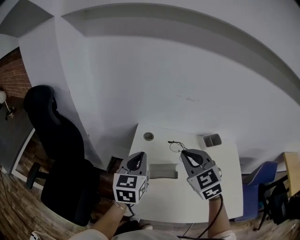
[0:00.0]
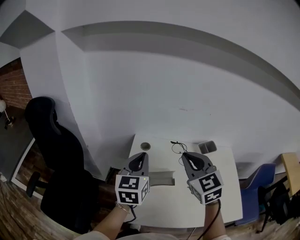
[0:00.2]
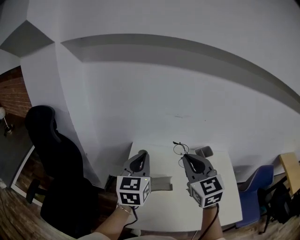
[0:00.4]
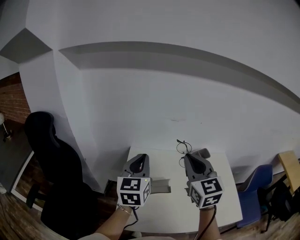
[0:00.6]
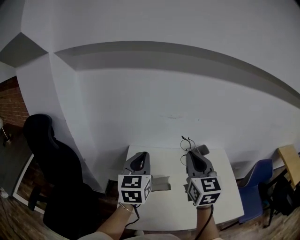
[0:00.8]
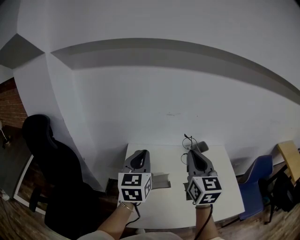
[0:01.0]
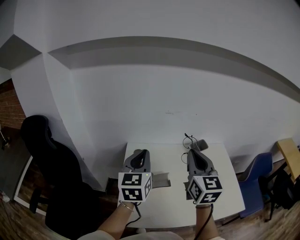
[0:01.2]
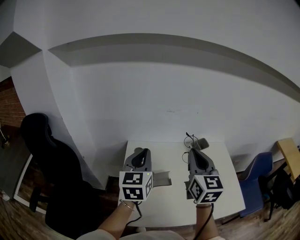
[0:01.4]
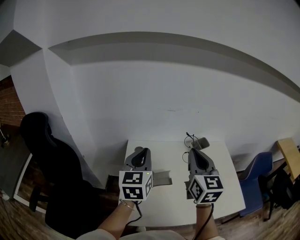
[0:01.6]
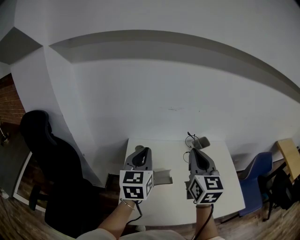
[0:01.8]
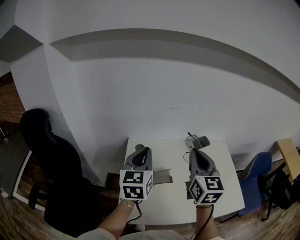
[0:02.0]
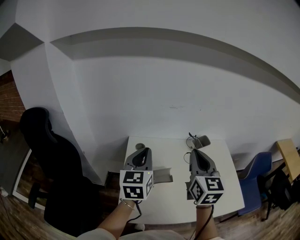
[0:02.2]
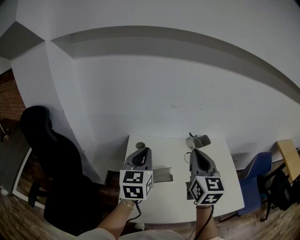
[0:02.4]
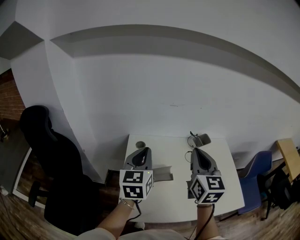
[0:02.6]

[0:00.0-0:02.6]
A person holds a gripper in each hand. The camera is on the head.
0:00.0 to 0:01.2: The left gripper travels upward and to the right by approximately 10 cm, while the right gripper shifts some 10 cm to the right and upward, and swivels approximately 40 degrees.
0:01.2 to 0:02.6: The grippers make only small movements.

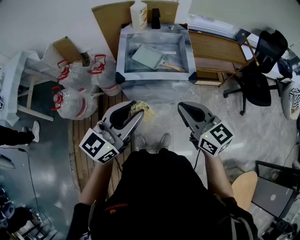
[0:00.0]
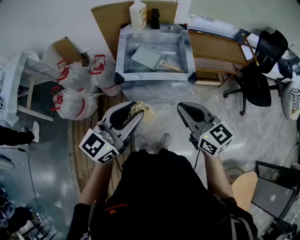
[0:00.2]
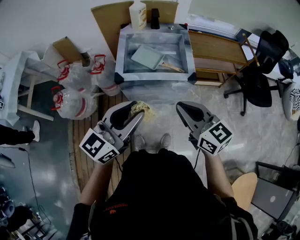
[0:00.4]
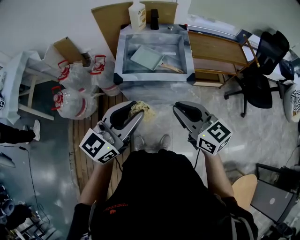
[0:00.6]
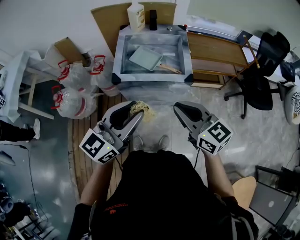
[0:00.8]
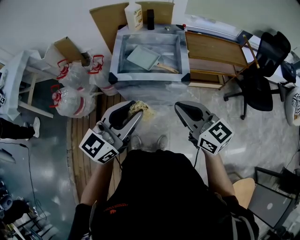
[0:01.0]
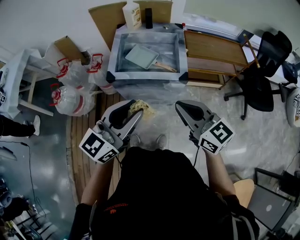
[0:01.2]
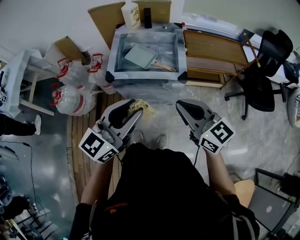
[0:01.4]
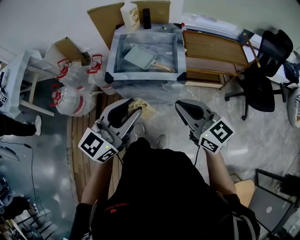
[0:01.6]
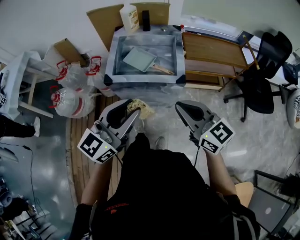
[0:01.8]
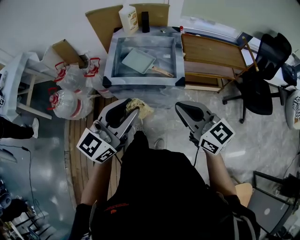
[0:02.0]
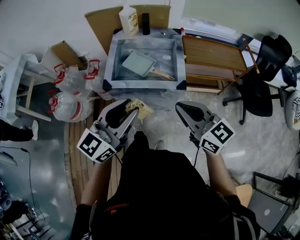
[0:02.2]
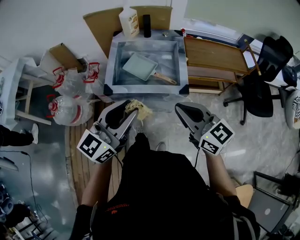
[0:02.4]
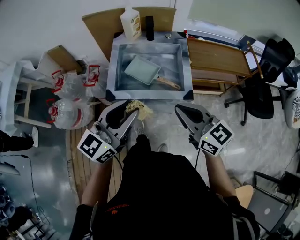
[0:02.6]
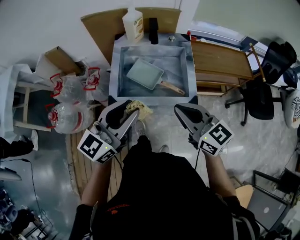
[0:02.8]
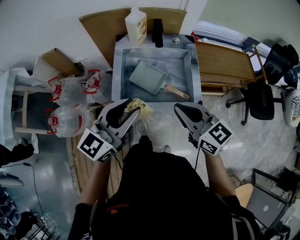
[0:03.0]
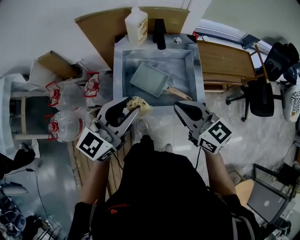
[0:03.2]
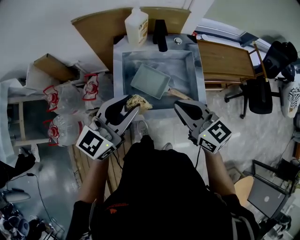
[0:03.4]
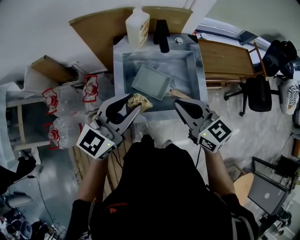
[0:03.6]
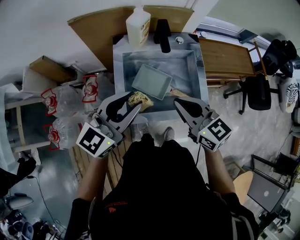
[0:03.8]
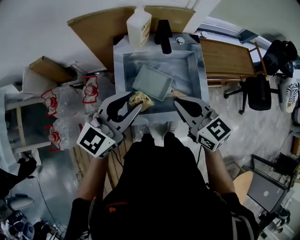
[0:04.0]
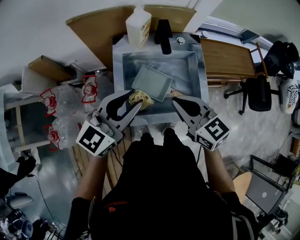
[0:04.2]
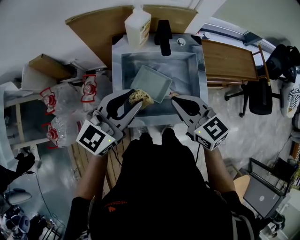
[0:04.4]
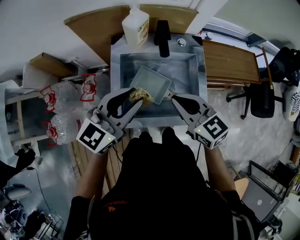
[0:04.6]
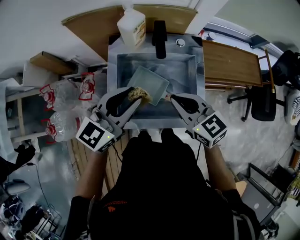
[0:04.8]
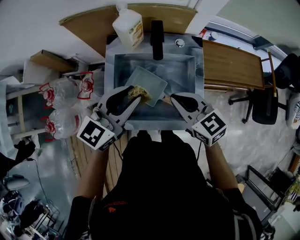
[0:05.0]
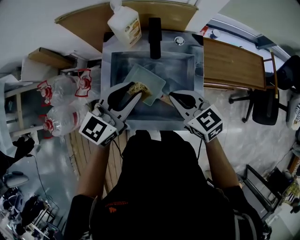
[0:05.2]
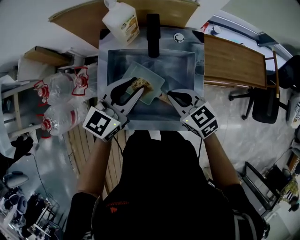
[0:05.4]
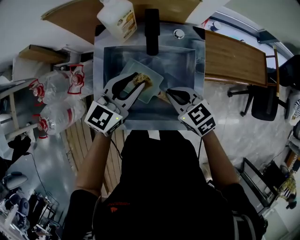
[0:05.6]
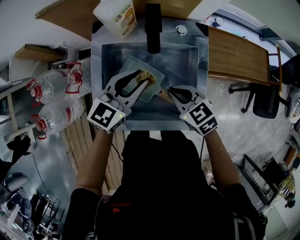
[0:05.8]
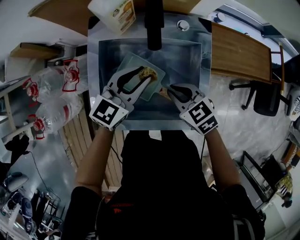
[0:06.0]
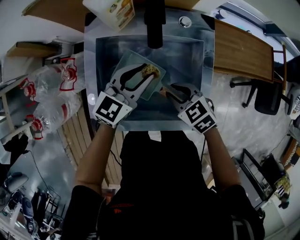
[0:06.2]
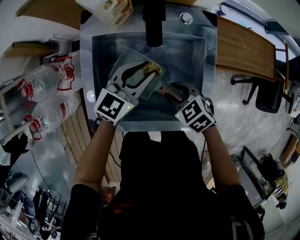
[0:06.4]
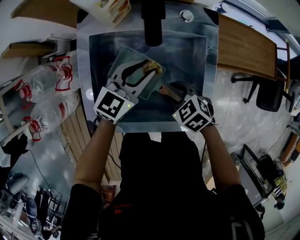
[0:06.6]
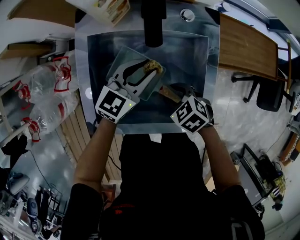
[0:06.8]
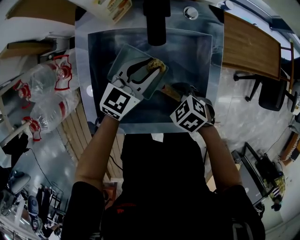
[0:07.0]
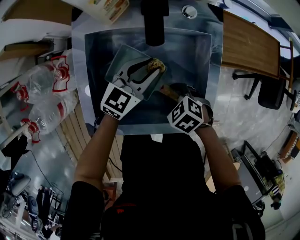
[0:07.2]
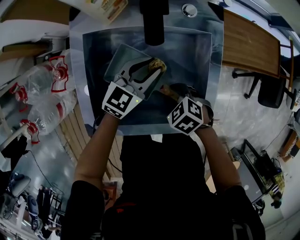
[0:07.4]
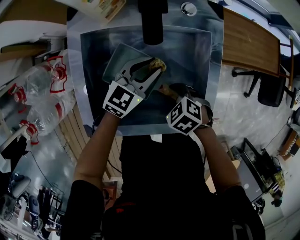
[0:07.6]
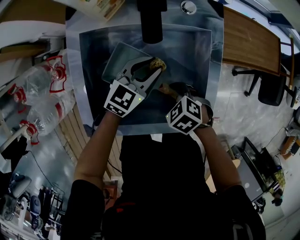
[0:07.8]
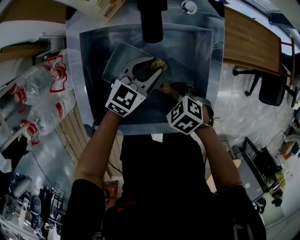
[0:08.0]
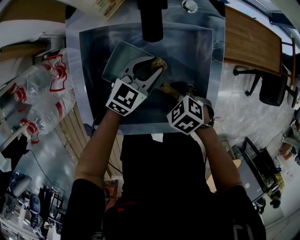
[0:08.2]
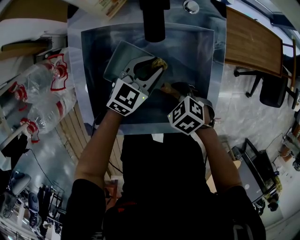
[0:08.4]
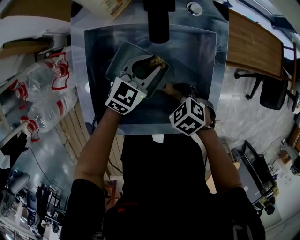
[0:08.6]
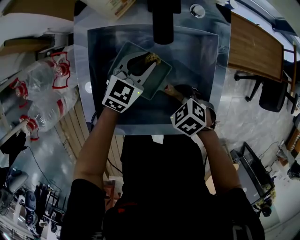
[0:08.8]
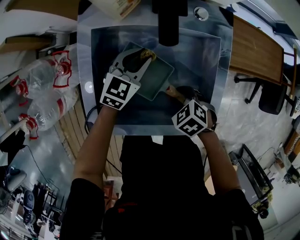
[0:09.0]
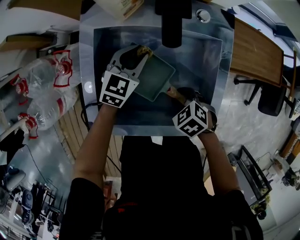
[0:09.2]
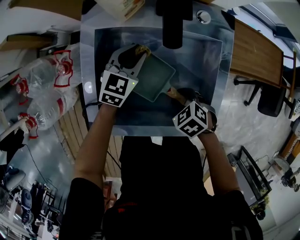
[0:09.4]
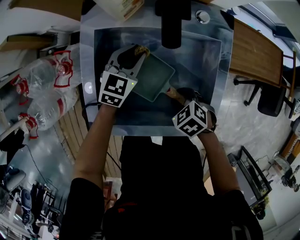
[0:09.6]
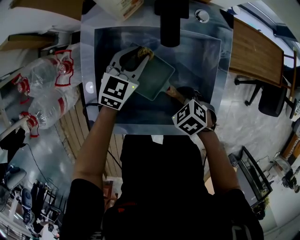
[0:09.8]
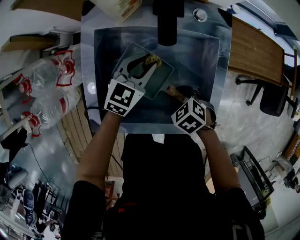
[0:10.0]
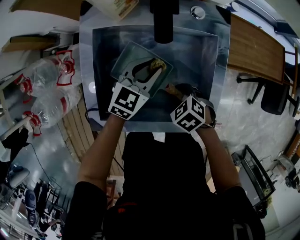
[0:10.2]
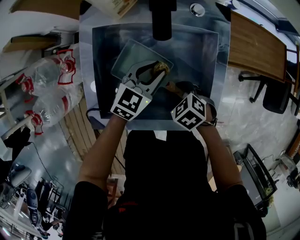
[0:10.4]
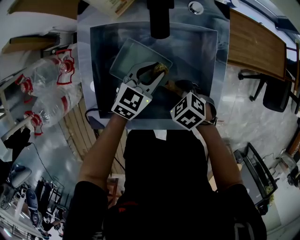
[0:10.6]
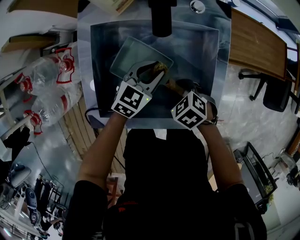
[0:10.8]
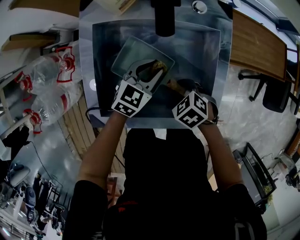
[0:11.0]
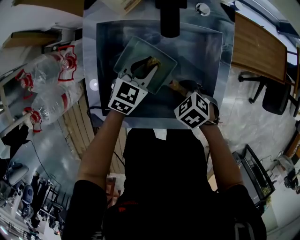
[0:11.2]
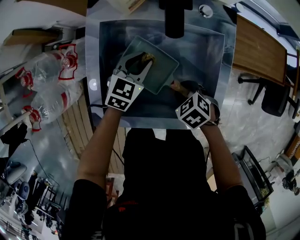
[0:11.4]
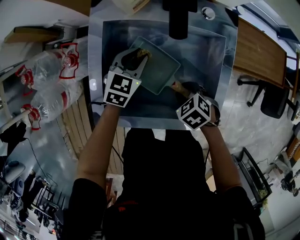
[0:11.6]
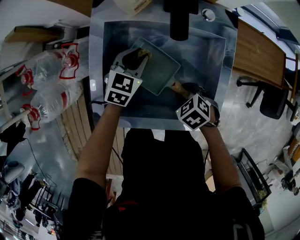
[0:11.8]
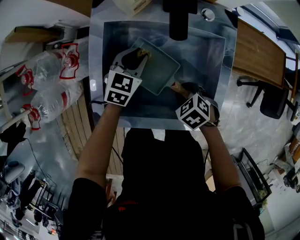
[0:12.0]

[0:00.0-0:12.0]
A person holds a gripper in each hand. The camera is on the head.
0:00.0 to 0:01.6: The two grippers go roughly 10 cm to the right.
0:01.6 to 0:03.0: Both grippers move forward and to the left, roughly 25 cm.
0:03.0 to 0:04.4: The right gripper heads forward and to the left, covering roughly 15 cm; the left gripper goes roughly 15 cm forward.
0:04.4 to 0:06.0: The right gripper heads downward and to the right, covering approximately 20 cm, and rotates approximately 30 degrees, while the left gripper is displaced downward, to the right and forward by roughly 25 cm.
0:06.0 to 0:07.6: The grippers both shift downward by roughly 15 cm. The right gripper changes its angle by roughly 30 degrees, and opens.
0:07.6 to 0:09.0: The left gripper shifts by some 5 cm.
0:09.0 to 0:10.4: The left gripper shifts by some 10 cm.
0:10.4 to 0:12.0: The left gripper shifts by about 10 cm.

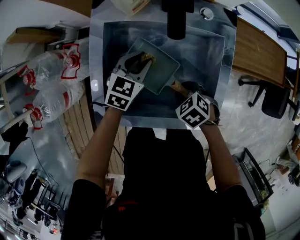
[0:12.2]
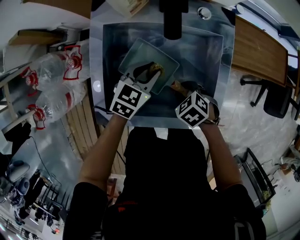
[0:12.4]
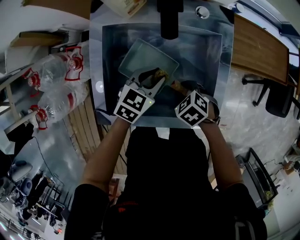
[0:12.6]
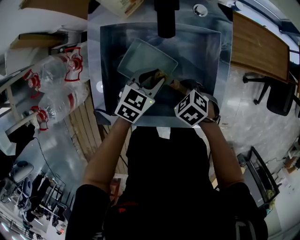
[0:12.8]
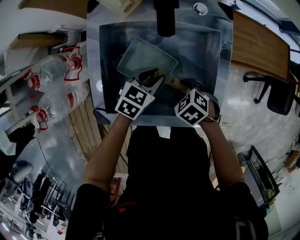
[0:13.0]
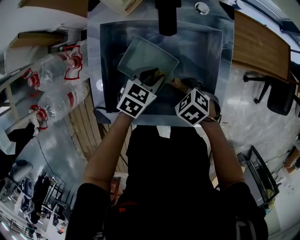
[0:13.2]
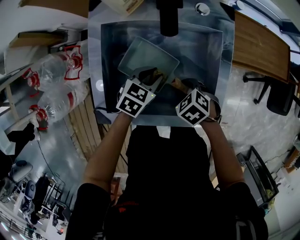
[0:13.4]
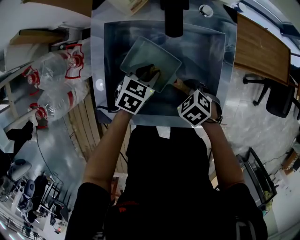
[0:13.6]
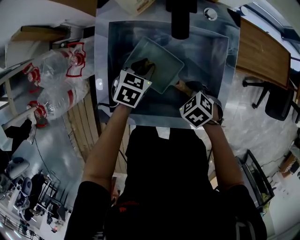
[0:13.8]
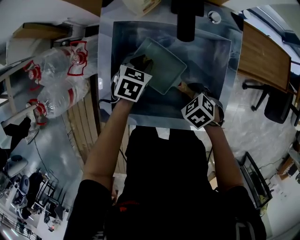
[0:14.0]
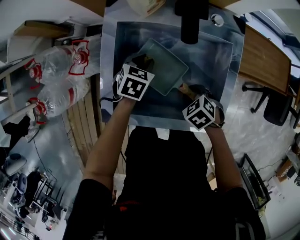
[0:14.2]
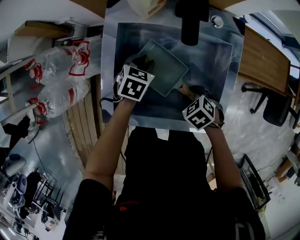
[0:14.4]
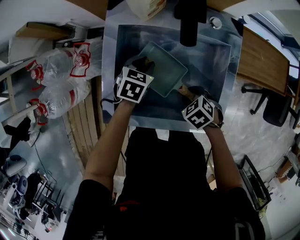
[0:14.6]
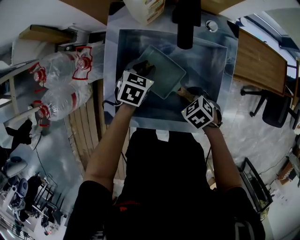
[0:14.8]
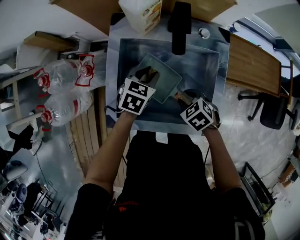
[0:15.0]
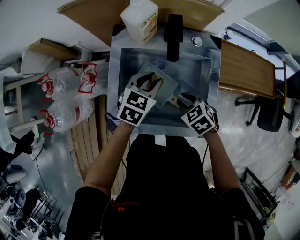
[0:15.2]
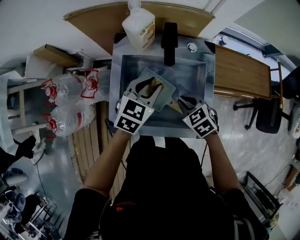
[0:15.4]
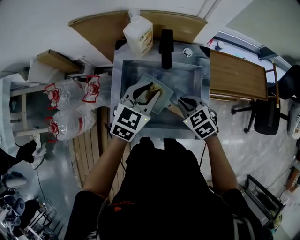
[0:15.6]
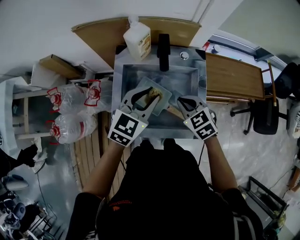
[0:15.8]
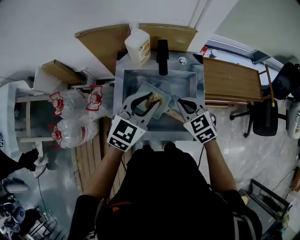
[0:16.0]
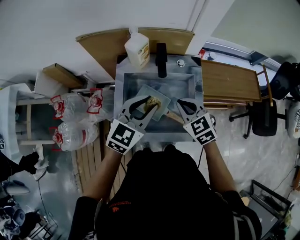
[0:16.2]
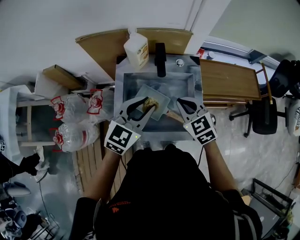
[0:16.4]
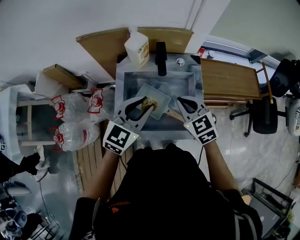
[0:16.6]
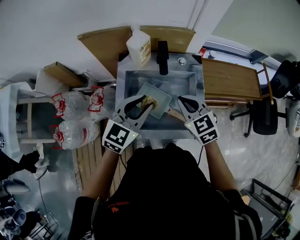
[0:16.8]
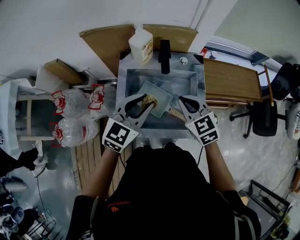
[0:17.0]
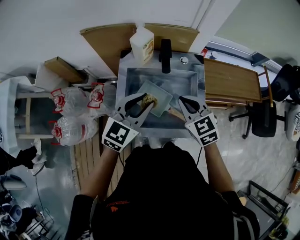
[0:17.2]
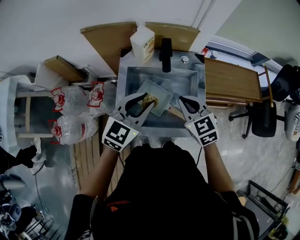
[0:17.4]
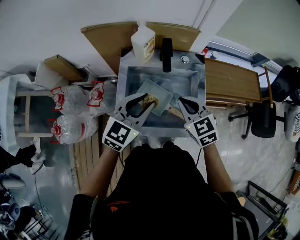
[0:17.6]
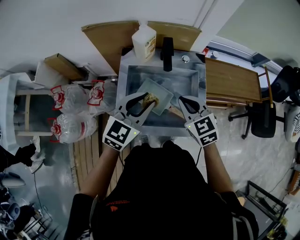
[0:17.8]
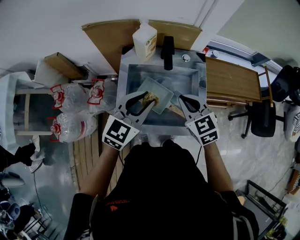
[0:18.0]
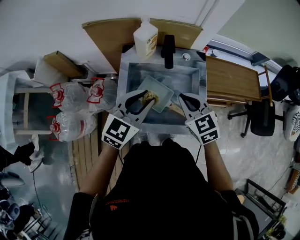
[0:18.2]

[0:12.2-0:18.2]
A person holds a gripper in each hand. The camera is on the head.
0:13.8 to 0:15.2: Both grippers travel together upward, roughly 10 cm.
0:15.2 to 0:16.6: The left gripper is displaced upward and backward by about 20 cm, and swivels approximately 30 degrees. Meanwhile the right gripper shifts some 20 cm upward, changes its angle by roughly 30 degrees, and closes.
0:16.6 to 0:18.2: The grippers move only a little.

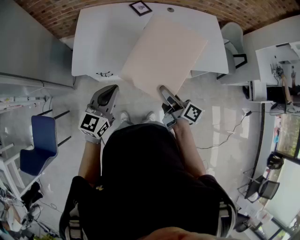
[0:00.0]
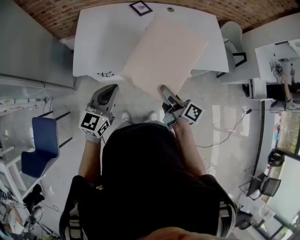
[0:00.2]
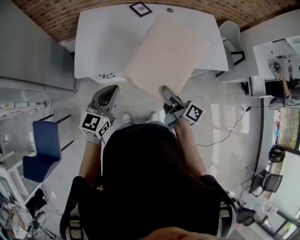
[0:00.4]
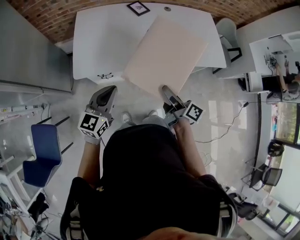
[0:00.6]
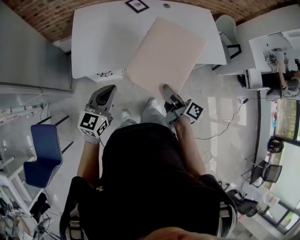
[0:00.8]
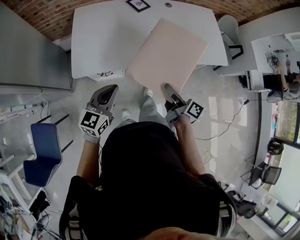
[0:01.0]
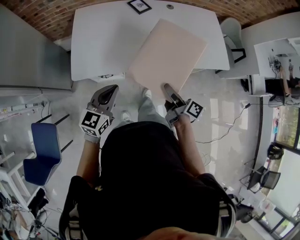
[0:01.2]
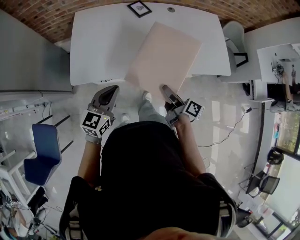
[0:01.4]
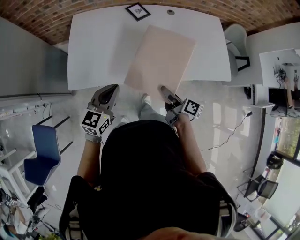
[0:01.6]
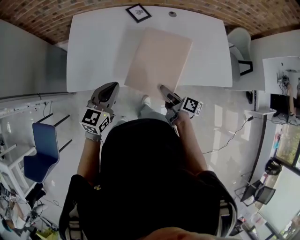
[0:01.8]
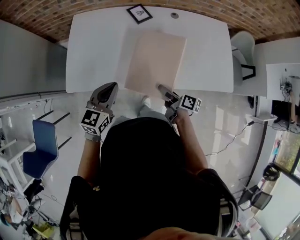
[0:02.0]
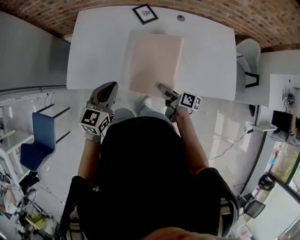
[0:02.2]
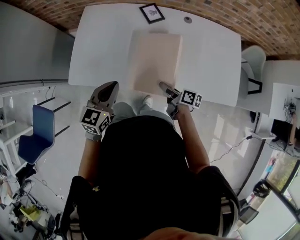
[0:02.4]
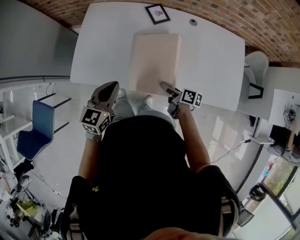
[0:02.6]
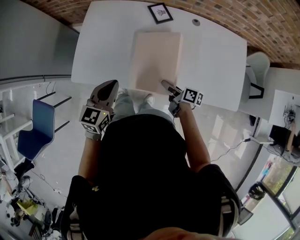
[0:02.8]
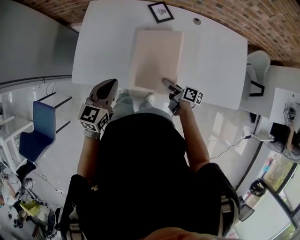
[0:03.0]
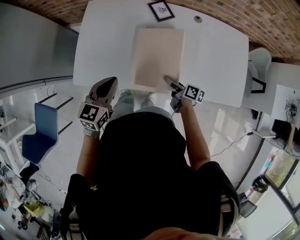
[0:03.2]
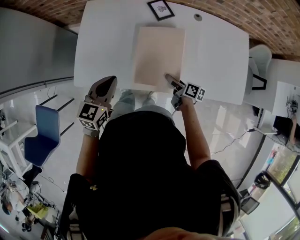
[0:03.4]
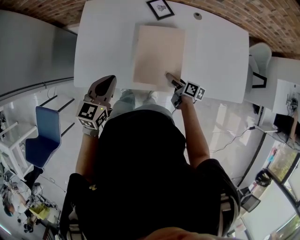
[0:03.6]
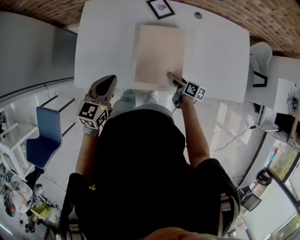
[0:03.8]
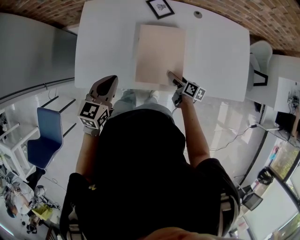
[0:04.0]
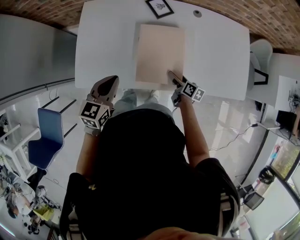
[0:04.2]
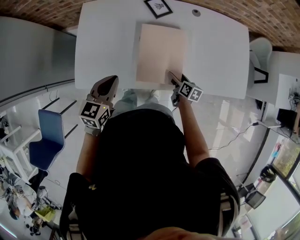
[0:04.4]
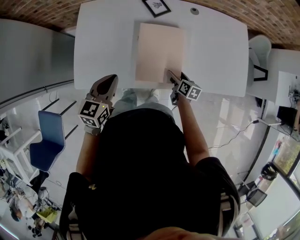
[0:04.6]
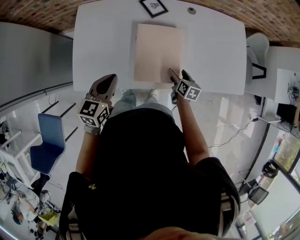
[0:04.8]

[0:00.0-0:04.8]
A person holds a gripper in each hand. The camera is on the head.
0:00.0 to 0:01.6: The right gripper moves forward and downward, roughly 15 cm. Meanwhile the left gripper shifts about 15 cm forward.
0:01.6 to 0:03.2: The right gripper shifts roughly 20 cm forward and downward; the left gripper goes some 15 cm forward.
0:03.2 to 0:04.8: The right gripper ends up approximately 5 cm from where it was, and changes its angle by some 40 degrees.
